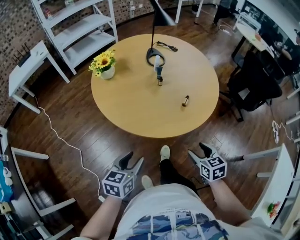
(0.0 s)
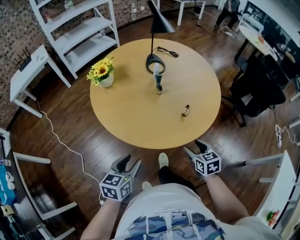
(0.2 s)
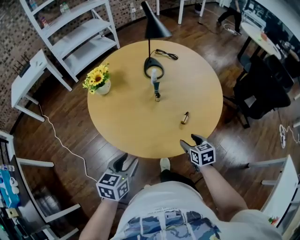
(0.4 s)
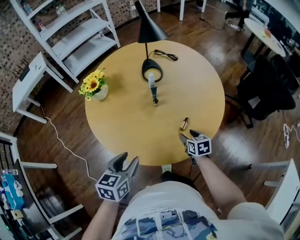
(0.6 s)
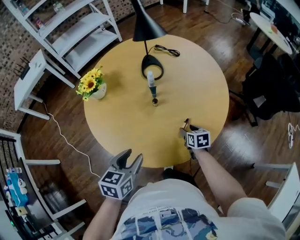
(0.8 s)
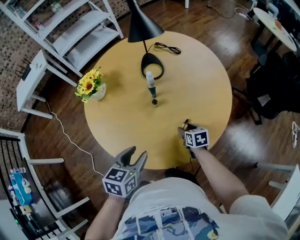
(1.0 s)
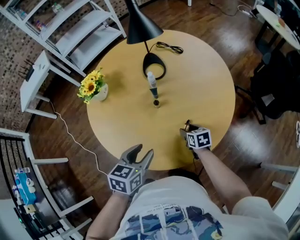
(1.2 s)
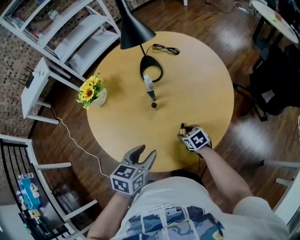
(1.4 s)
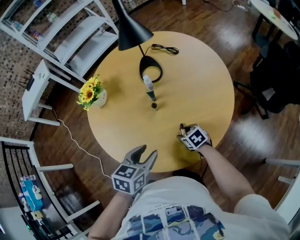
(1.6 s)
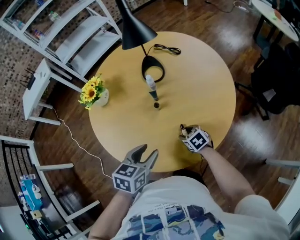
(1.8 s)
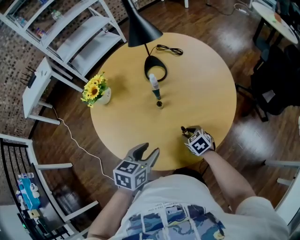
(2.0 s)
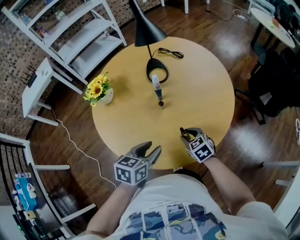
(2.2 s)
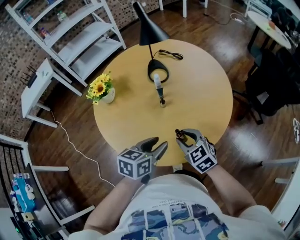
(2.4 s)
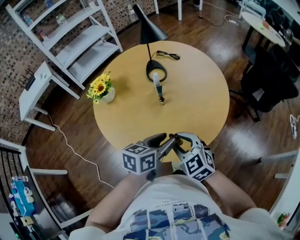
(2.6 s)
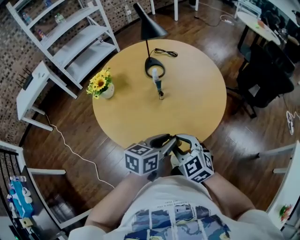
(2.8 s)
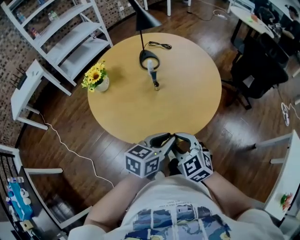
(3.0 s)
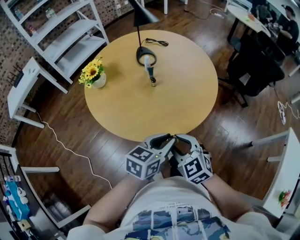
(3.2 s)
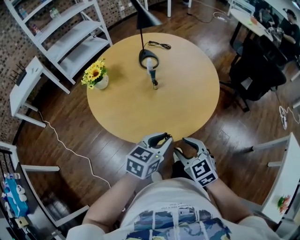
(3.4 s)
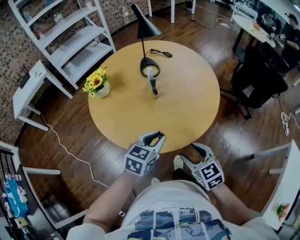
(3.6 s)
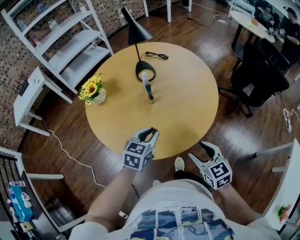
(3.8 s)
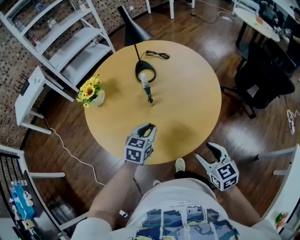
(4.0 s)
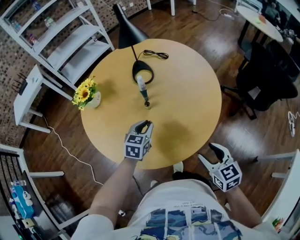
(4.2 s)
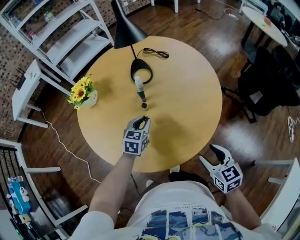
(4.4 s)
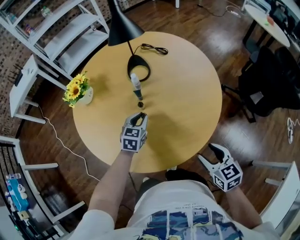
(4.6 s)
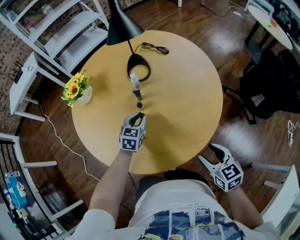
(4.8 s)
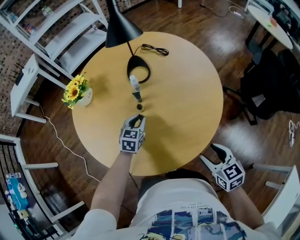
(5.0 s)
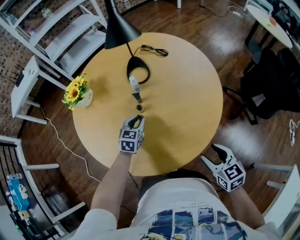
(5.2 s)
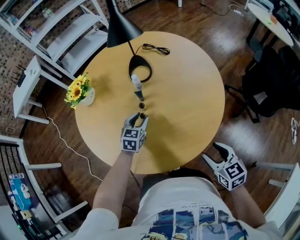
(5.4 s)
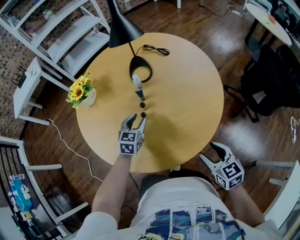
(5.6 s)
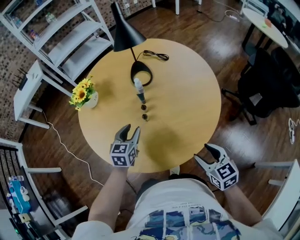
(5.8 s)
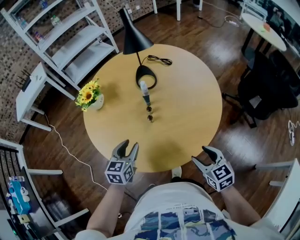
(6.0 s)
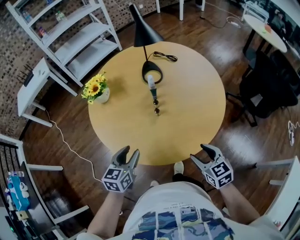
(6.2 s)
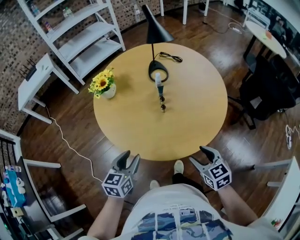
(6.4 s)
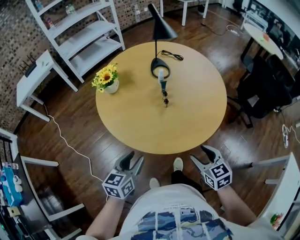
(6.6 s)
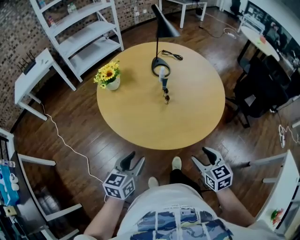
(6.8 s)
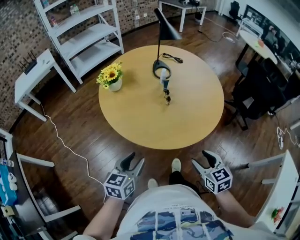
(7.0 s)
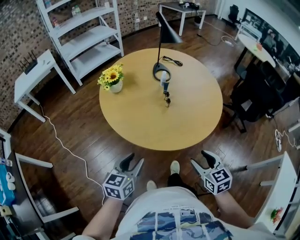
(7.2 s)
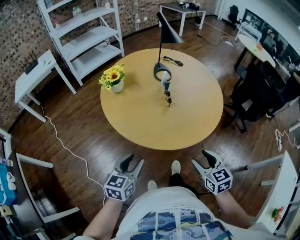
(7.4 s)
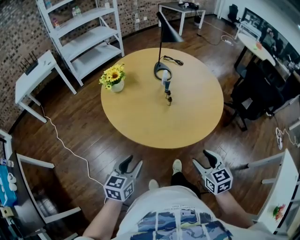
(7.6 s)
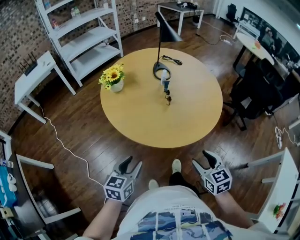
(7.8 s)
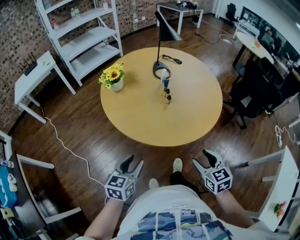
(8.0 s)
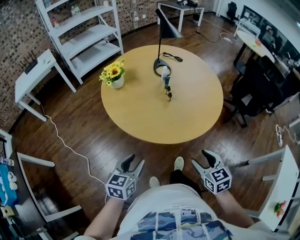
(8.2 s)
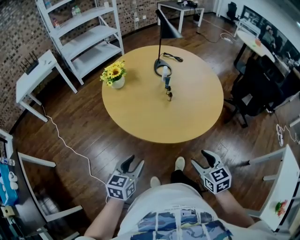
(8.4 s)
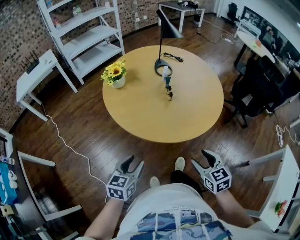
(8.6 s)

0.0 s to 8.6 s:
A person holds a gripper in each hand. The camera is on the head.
0.0 to 1.4 s: The left gripper moves forward and to the right, roughly 30 cm; the right gripper shifts about 35 cm forward and downward, and swivels some 30 degrees.
1.4 to 2.8 s: The left gripper shifts some 10 cm backward and upward, and swivels about 20 degrees. Meanwhile the right gripper heads upward, backward and to the left, covering approximately 30 cm, and changes its angle by about 40 degrees.
2.8 to 4.4 s: The left gripper heads forward and downward, covering roughly 25 cm, and turns by about 30 degrees. The right gripper moves to the right, about 25 cm, turns by roughly 30 degrees, and opens its fingers.
4.4 to 5.8 s: The left gripper moves to the left, about 5 cm.
5.8 to 7.2 s: The right gripper is displaced to the left and backward by about 30 cm. Meanwhile the left gripper travels backward and to the left by about 35 cm.
7.2 to 8.6 s: The left gripper is displaced backward by approximately 5 cm. Meanwhile the right gripper shifts by some 5 cm.

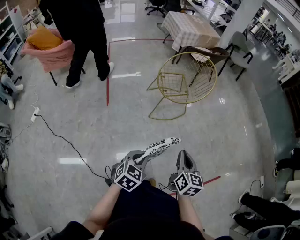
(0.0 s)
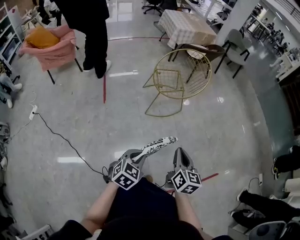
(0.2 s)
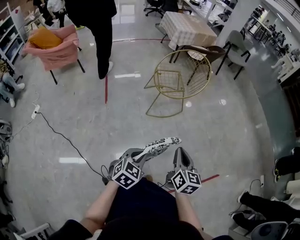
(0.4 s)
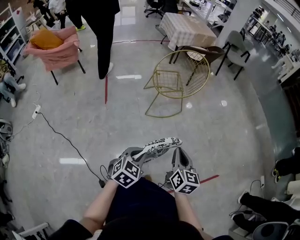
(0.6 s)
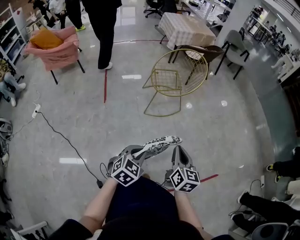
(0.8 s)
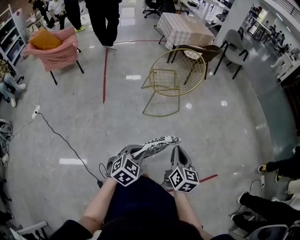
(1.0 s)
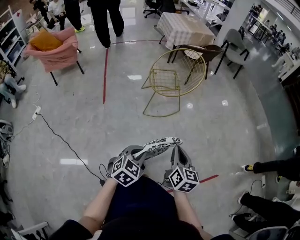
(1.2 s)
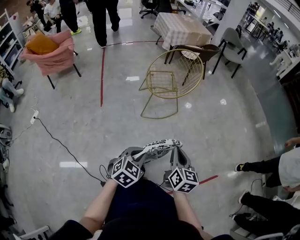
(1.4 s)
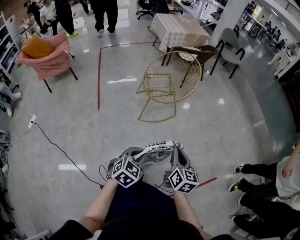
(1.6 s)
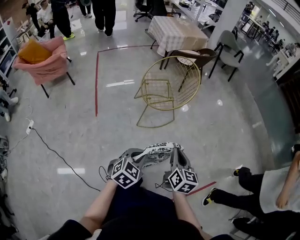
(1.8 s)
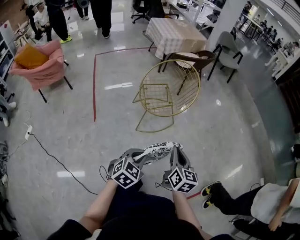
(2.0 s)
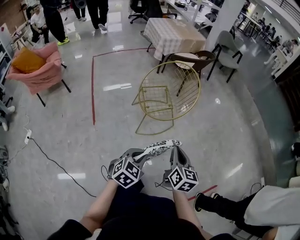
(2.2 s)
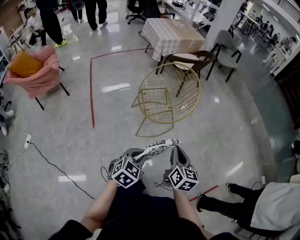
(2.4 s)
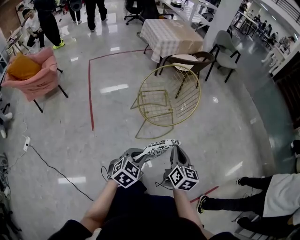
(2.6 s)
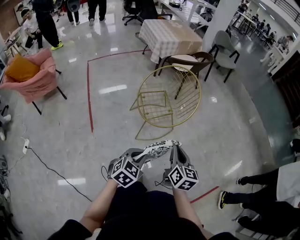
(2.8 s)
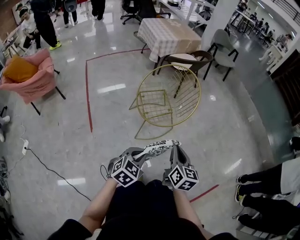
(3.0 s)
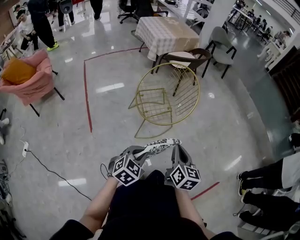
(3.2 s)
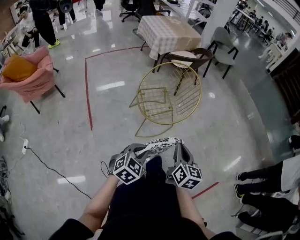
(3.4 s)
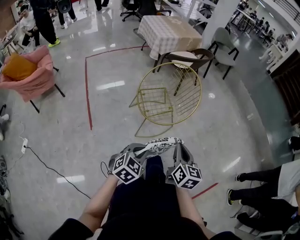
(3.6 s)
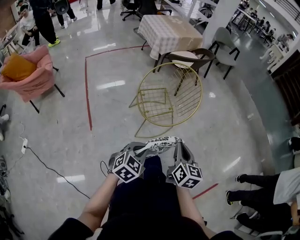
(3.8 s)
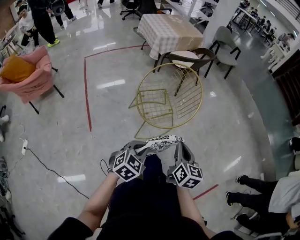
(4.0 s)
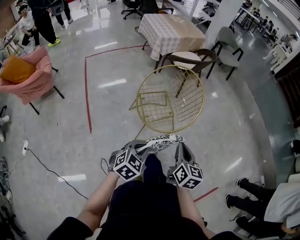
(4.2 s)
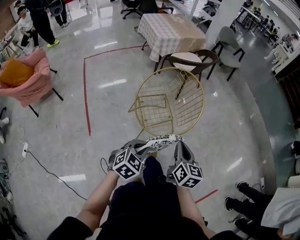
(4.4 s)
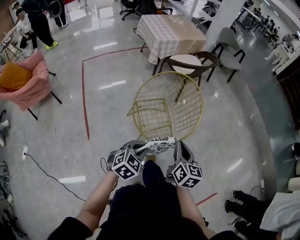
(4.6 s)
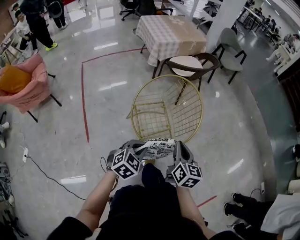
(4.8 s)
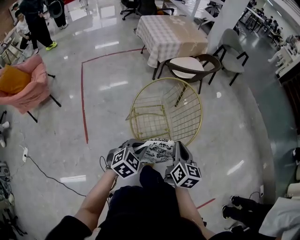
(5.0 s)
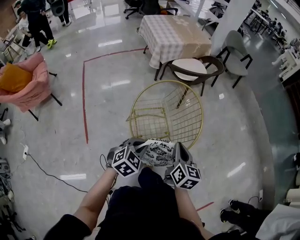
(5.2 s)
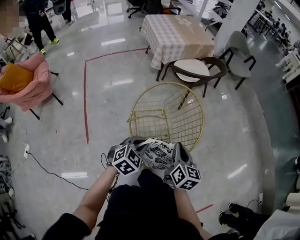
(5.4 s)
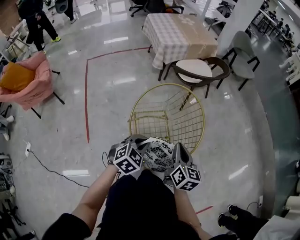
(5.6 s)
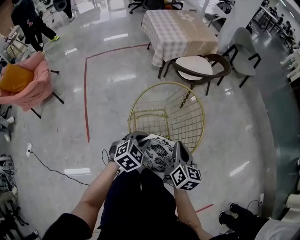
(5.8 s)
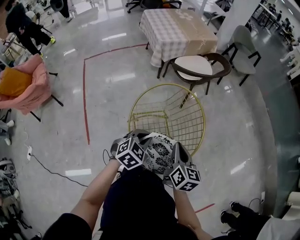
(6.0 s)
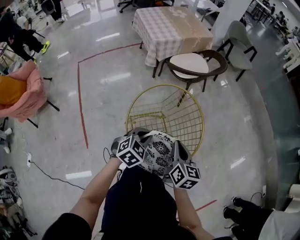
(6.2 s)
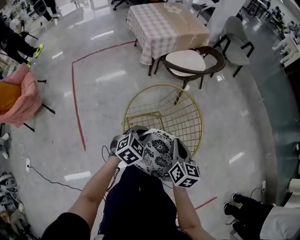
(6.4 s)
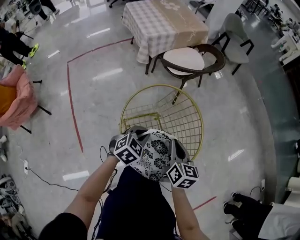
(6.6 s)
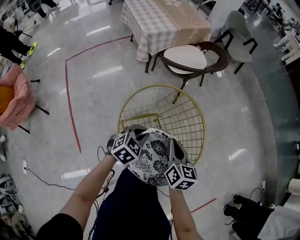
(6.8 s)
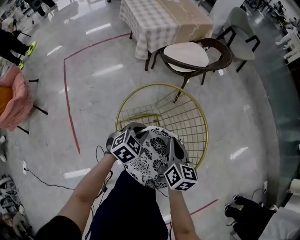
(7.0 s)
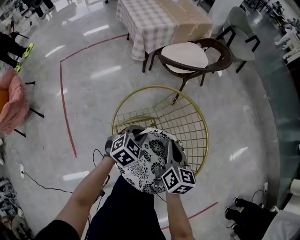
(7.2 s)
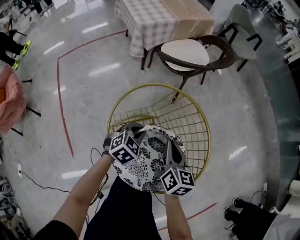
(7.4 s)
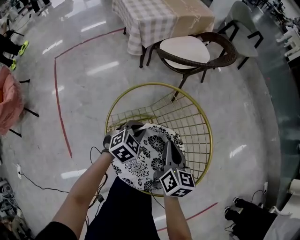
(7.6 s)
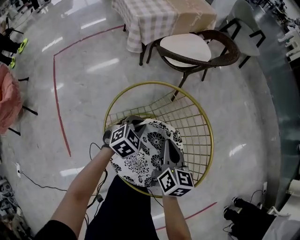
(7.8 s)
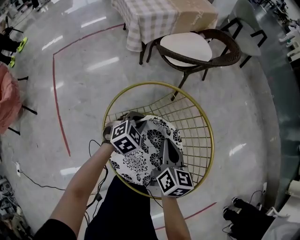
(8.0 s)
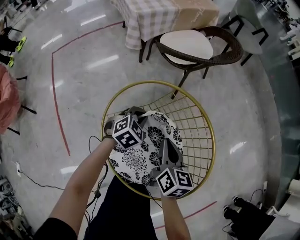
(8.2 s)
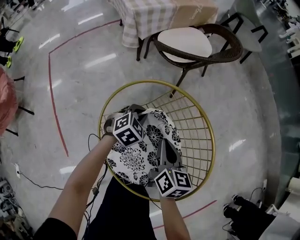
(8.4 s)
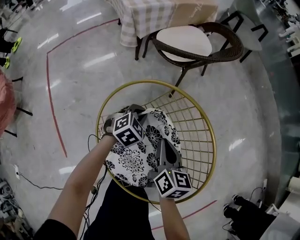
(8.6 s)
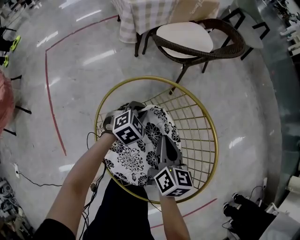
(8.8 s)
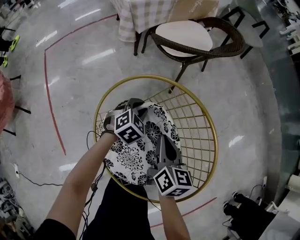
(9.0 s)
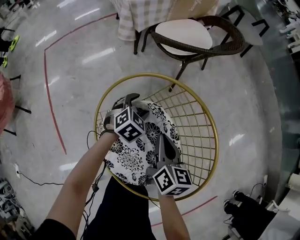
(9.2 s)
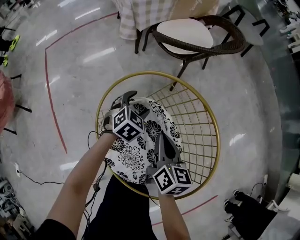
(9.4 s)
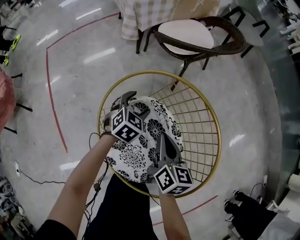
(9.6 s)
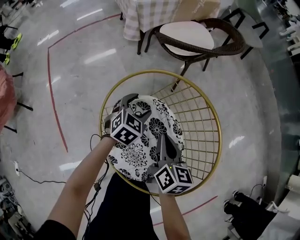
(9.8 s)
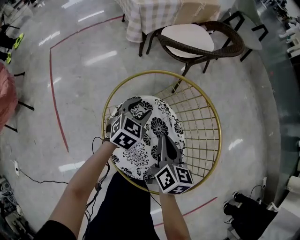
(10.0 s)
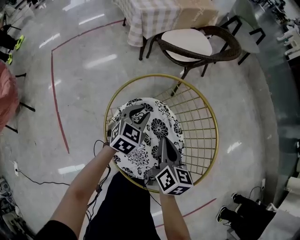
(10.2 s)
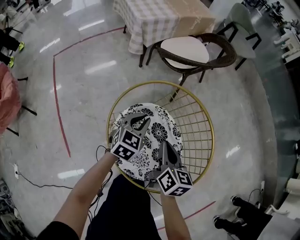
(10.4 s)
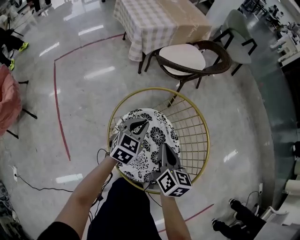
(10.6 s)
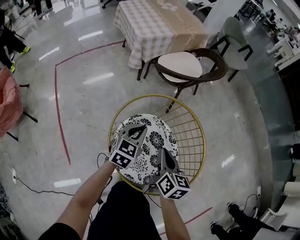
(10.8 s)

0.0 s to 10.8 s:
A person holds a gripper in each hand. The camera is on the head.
0.0 to 1.6 s: The grippers both shift to the right by about 10 cm.
1.6 to 3.0 s: The two grippers go some 20 cm forward and to the left.
3.0 to 4.6 s: The grippers both shift forward by approximately 15 cm.
4.6 to 6.2 s: Both grippers travel together forward, some 20 cm.
6.2 to 7.8 s: The grippers both shift downward and forward by some 20 cm.
7.8 to 9.2 s: The left gripper is displaced forward and downward by some 10 cm, and opens its fingers.
9.2 to 10.8 s: The left gripper shifts approximately 15 cm upward and backward, turns by about 30 degrees, and closes; the right gripper goes about 10 cm upward.

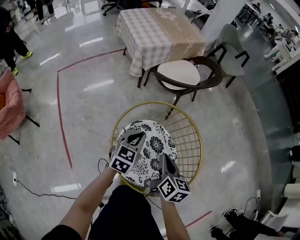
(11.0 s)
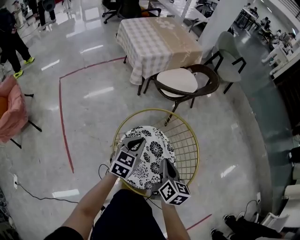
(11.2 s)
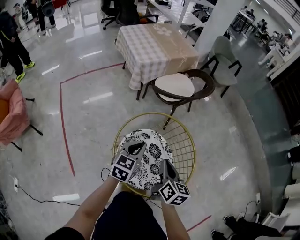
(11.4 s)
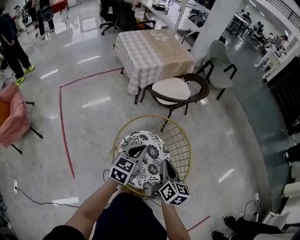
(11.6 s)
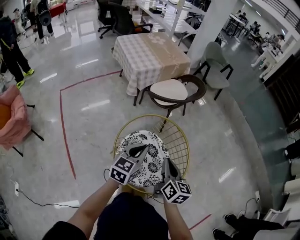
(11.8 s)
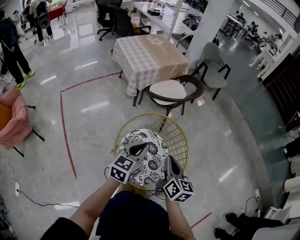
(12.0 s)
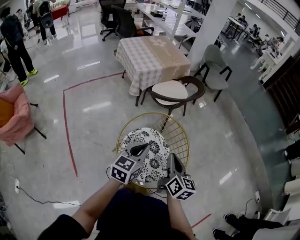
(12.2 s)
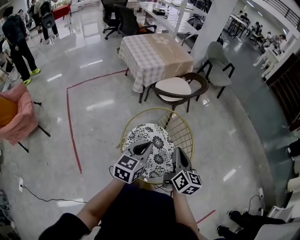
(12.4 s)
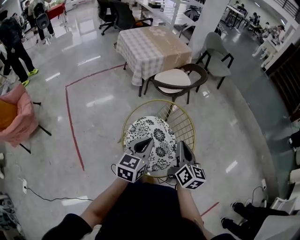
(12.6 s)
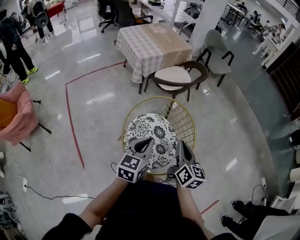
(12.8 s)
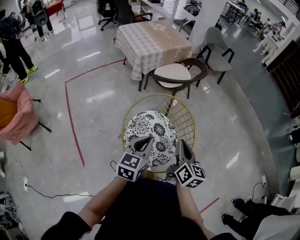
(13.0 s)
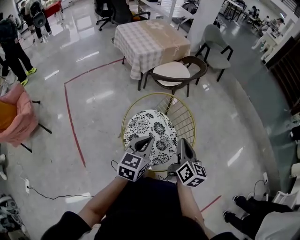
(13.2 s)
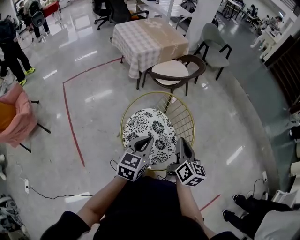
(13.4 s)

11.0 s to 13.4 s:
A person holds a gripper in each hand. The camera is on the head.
11.0 to 12.2 s: The left gripper shifts about 20 cm upward and backward; the right gripper shifts some 15 cm upward.
12.2 to 13.4 s: The left gripper heads backward, covering some 5 cm.

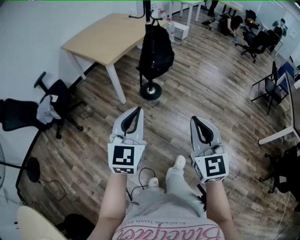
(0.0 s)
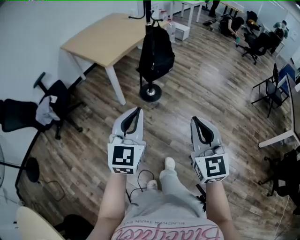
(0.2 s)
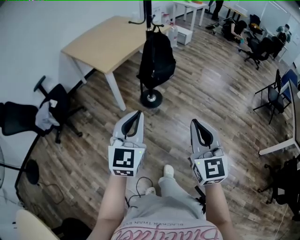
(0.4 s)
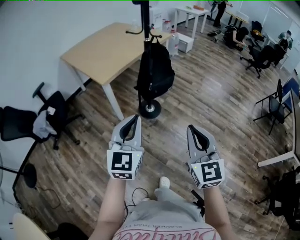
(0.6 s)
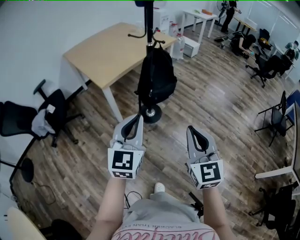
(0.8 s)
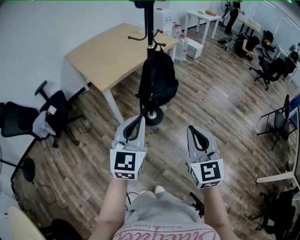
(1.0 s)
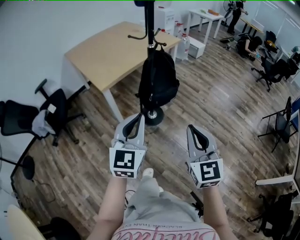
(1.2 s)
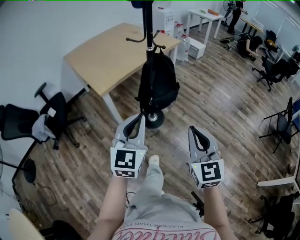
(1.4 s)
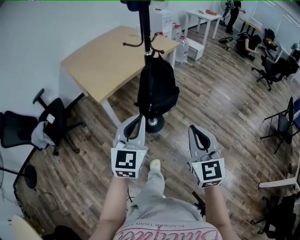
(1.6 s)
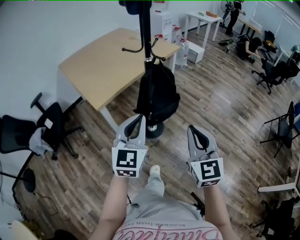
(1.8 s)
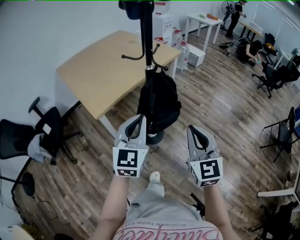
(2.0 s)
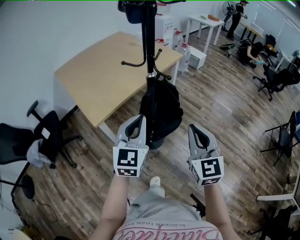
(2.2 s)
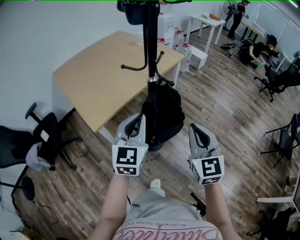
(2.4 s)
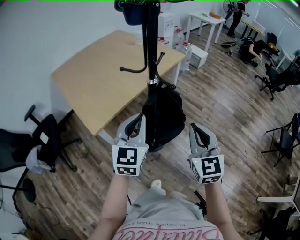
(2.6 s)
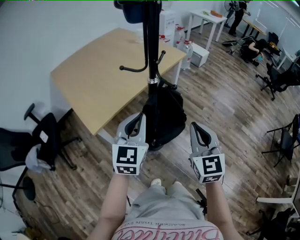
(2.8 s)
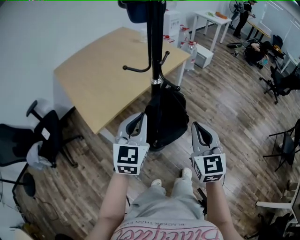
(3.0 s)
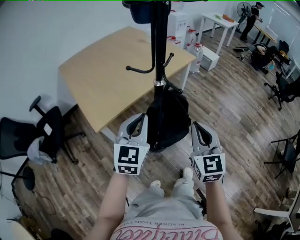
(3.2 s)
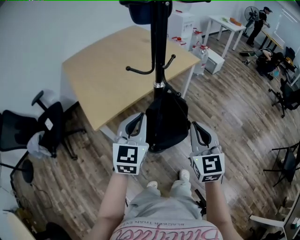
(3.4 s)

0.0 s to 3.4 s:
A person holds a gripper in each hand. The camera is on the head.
0.0 to 1.6 s: Both grippers travel together forward, some 30 cm.
1.6 to 3.4 s: Both grippers move forward, roughly 30 cm.
